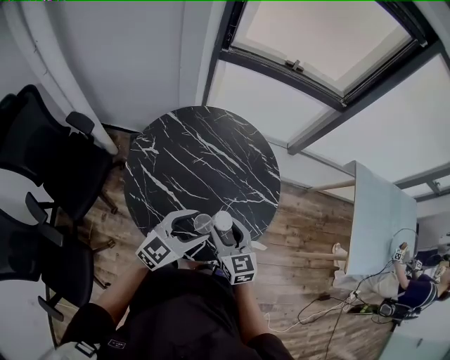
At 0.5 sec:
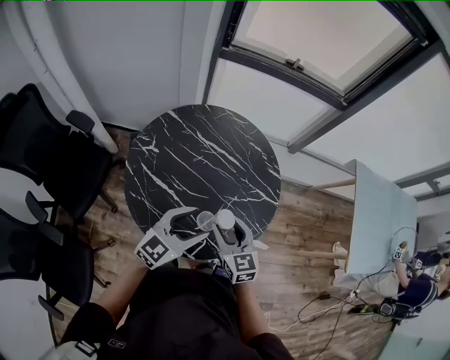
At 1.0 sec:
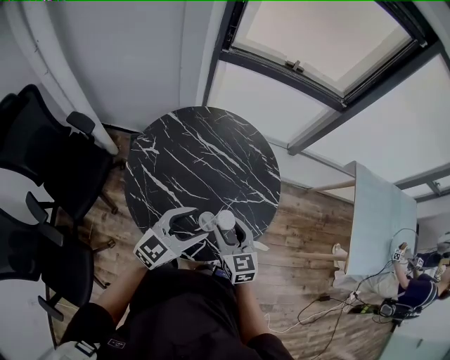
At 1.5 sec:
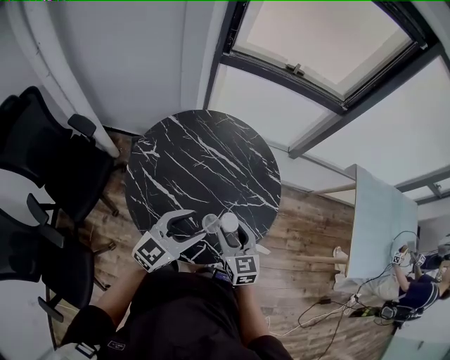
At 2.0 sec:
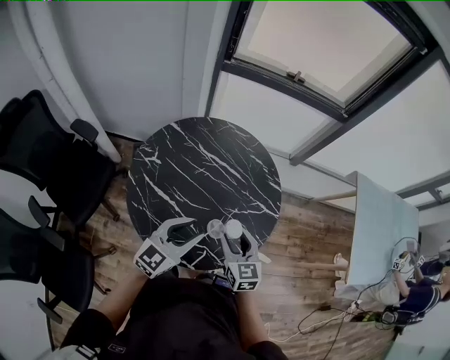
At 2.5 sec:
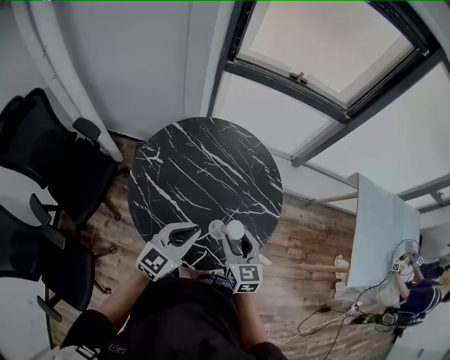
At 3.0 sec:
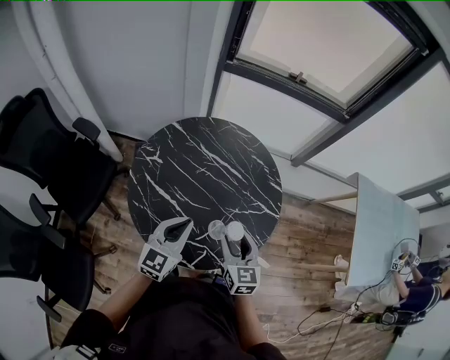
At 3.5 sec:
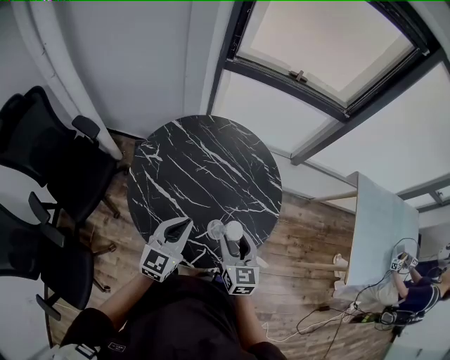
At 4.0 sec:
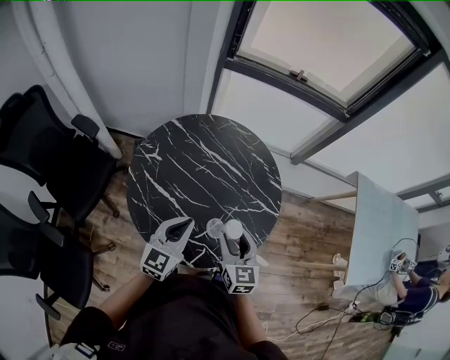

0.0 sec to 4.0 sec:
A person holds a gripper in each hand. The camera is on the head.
0.0 sec to 2.0 sec: The left gripper closes up.
2.0 sec to 4.0 sec: The left gripper closes up.

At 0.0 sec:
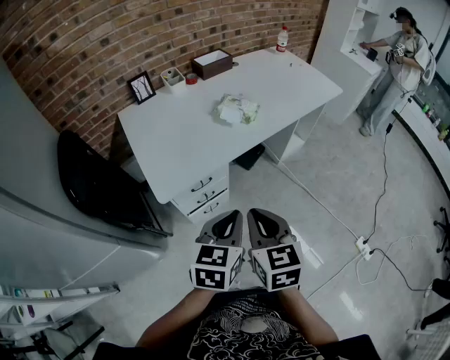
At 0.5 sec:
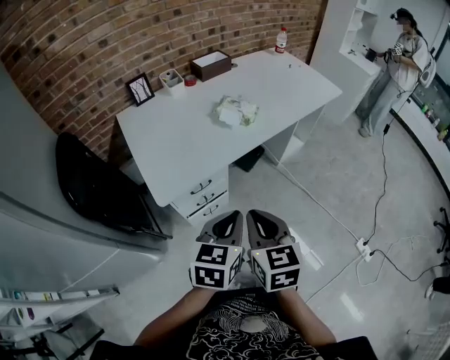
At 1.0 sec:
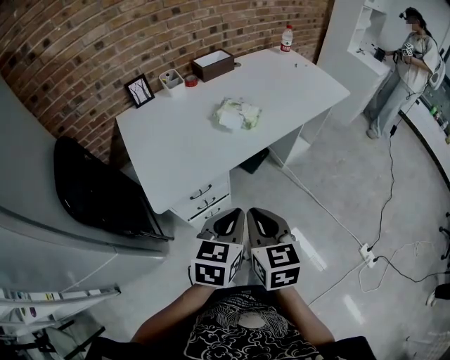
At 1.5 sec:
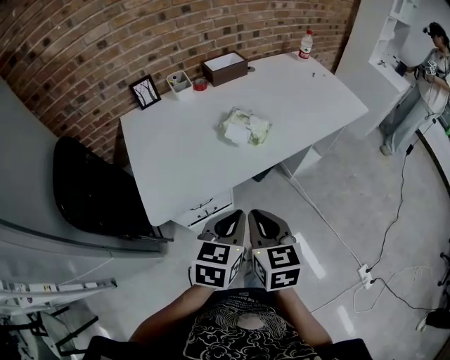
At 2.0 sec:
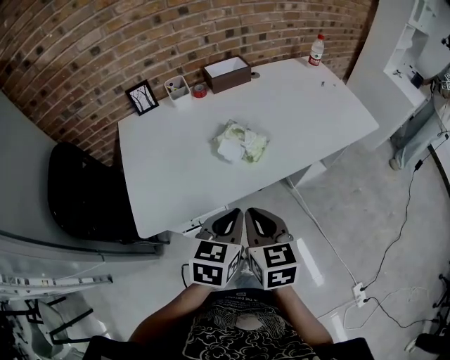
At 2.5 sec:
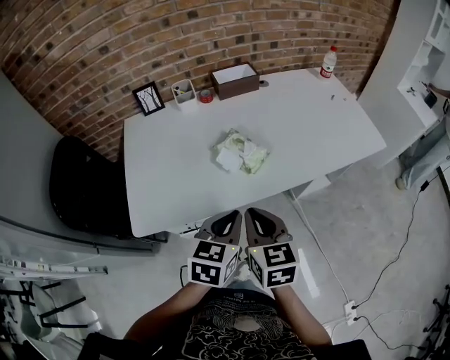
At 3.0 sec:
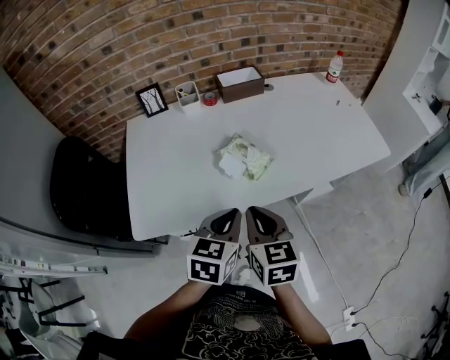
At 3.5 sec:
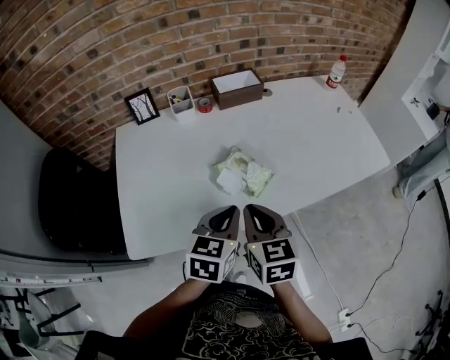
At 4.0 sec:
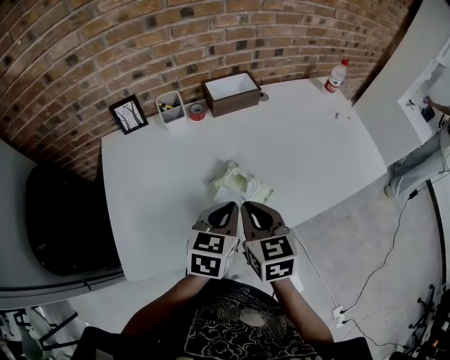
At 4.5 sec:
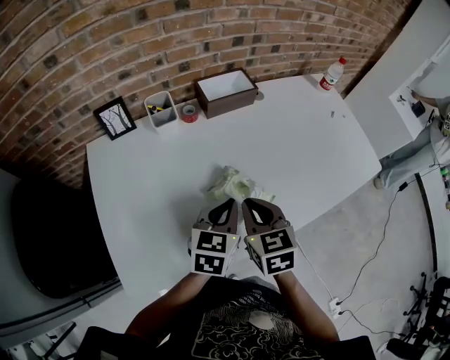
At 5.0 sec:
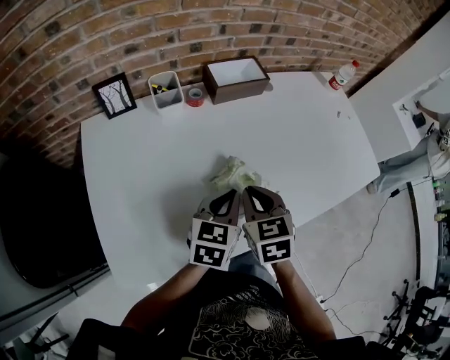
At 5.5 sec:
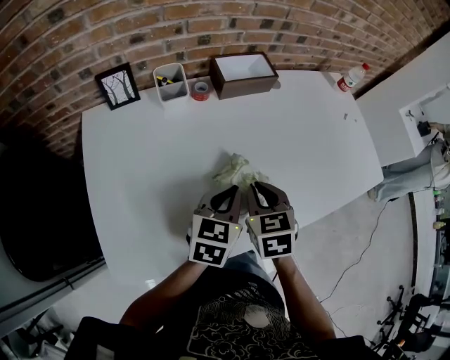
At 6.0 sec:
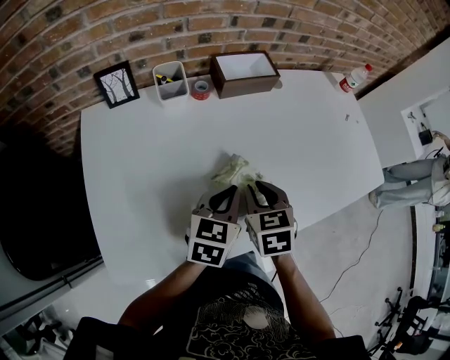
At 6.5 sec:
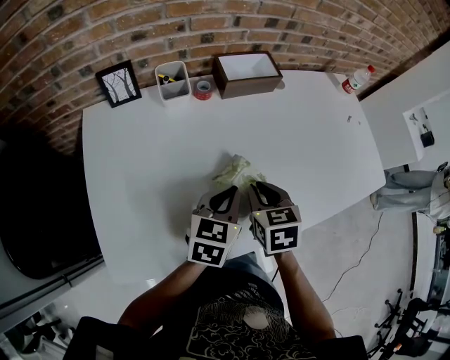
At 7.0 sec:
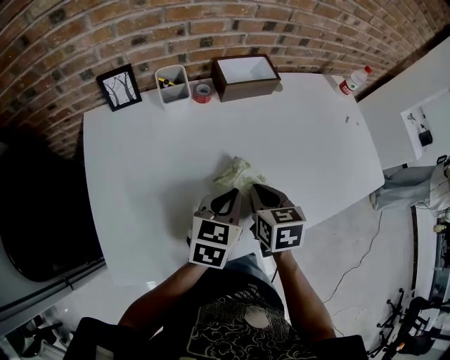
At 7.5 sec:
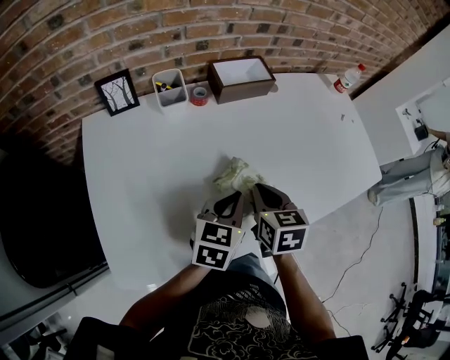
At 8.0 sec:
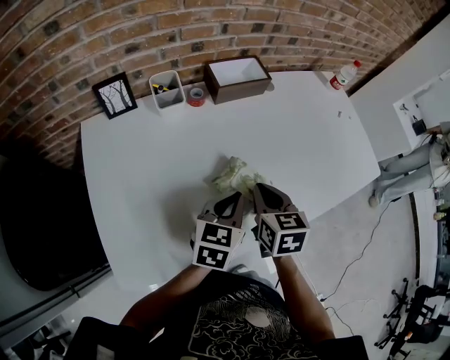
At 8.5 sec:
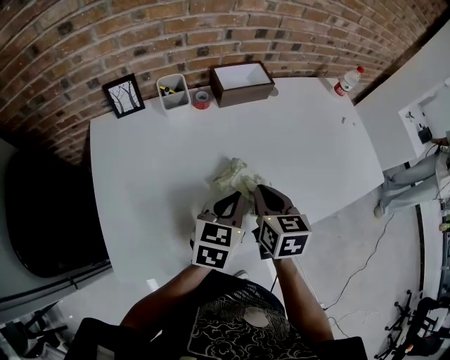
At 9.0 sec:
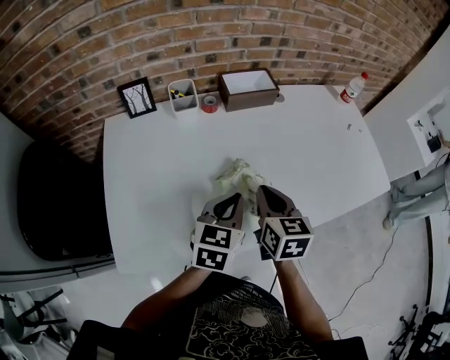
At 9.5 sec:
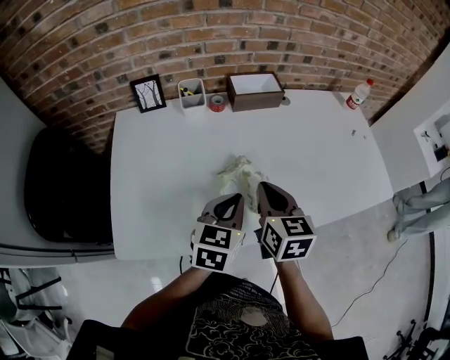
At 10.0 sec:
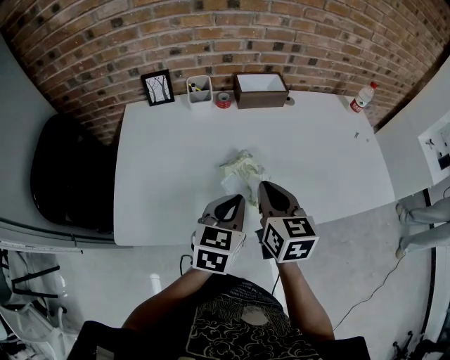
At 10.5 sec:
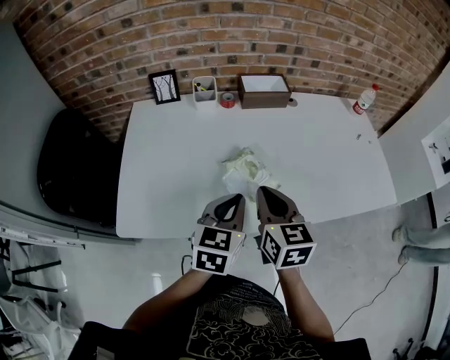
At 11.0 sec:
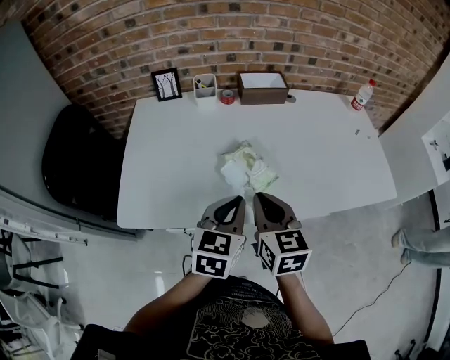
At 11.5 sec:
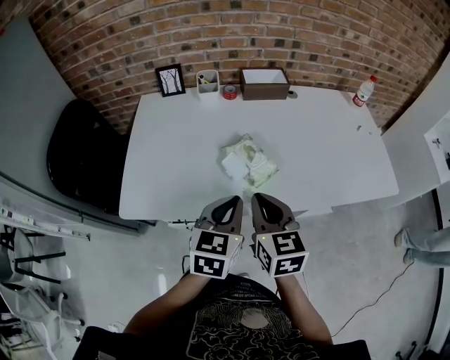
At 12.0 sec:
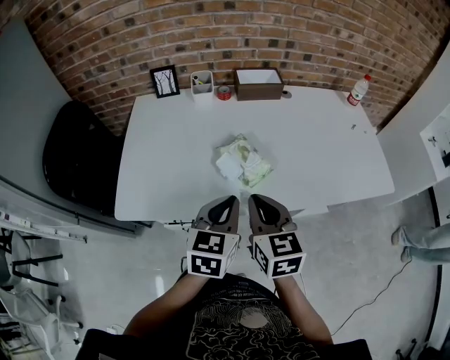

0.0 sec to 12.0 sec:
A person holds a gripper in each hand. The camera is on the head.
0.0 sec to 2.0 sec: The grippers both shift forward by about 25 cm.
2.0 sec to 4.0 sec: Both grippers move forward, roughly 20 cm.
4.0 sec to 6.0 sec: The left gripper travels forward and downward by roughly 10 cm, while the right gripper heads downward and forward, covering approximately 10 cm, and rotates roughly 20 degrees.
6.0 sec to 8.0 sec: There are only small adjustments of the grippers.
8.0 sec to 10.0 sec: The left gripper shifts some 5 cm backward. The right gripper is displaced upward and backward by about 10 cm, and turns by roughly 20 degrees.
10.0 sec to 12.0 sec: The grippers both shift backward by some 10 cm.

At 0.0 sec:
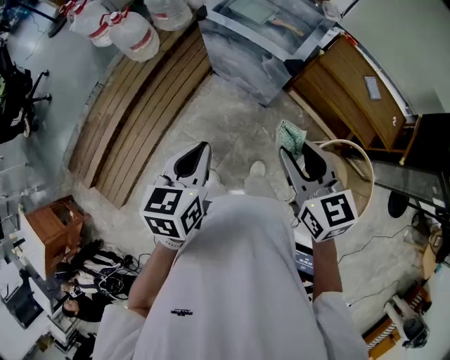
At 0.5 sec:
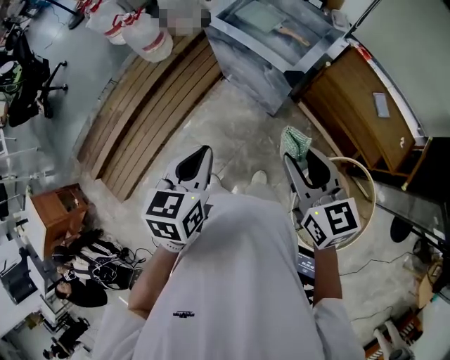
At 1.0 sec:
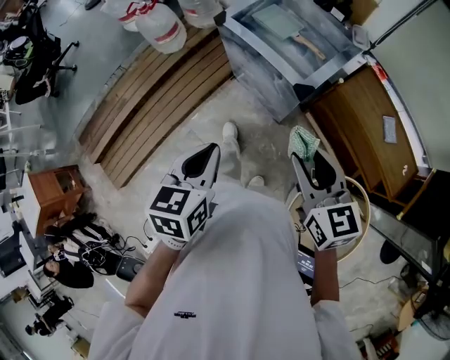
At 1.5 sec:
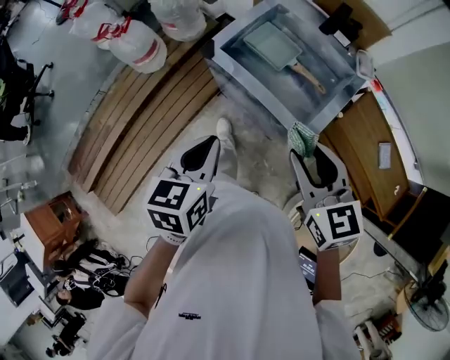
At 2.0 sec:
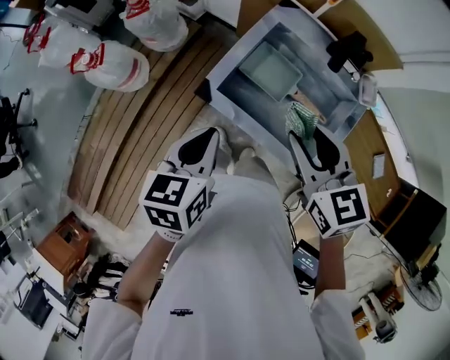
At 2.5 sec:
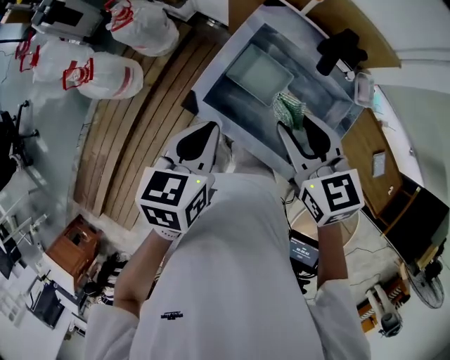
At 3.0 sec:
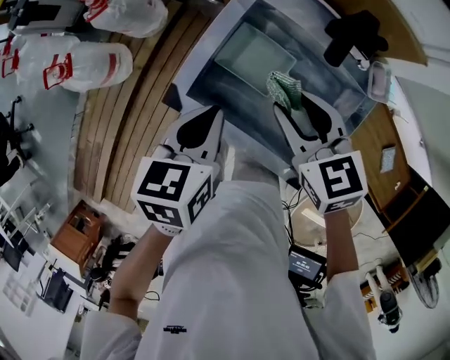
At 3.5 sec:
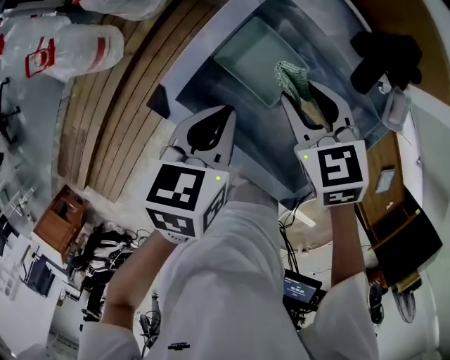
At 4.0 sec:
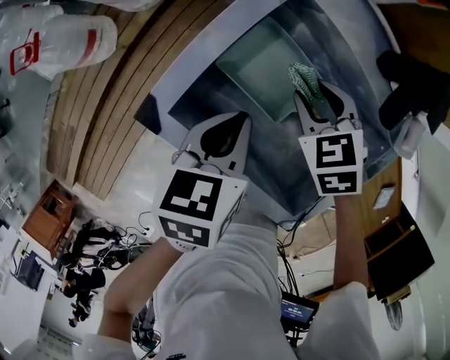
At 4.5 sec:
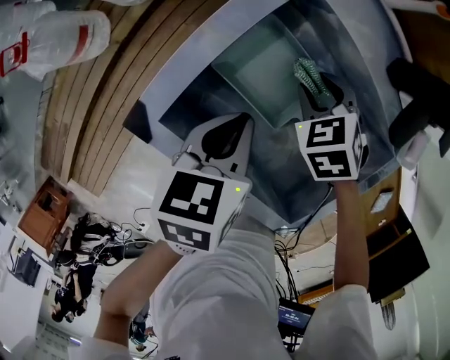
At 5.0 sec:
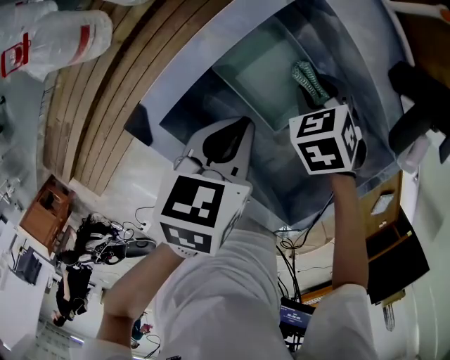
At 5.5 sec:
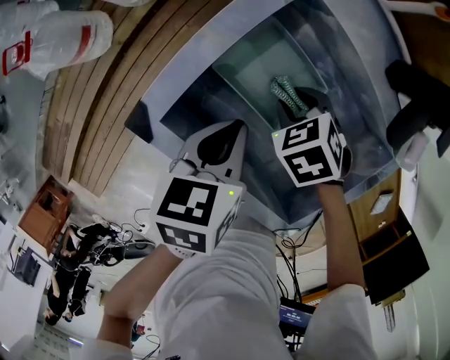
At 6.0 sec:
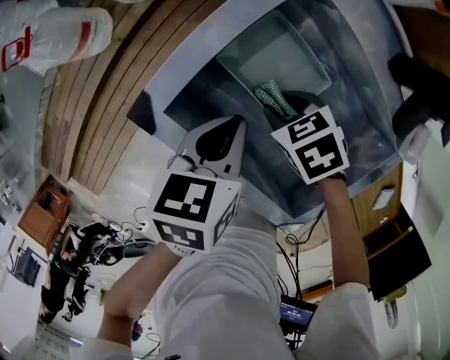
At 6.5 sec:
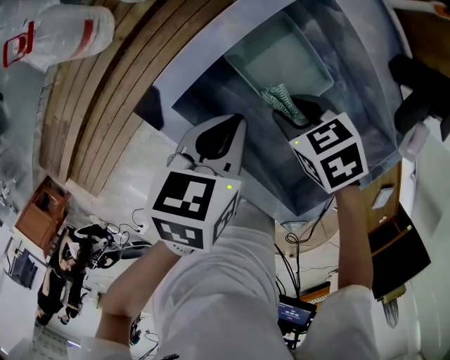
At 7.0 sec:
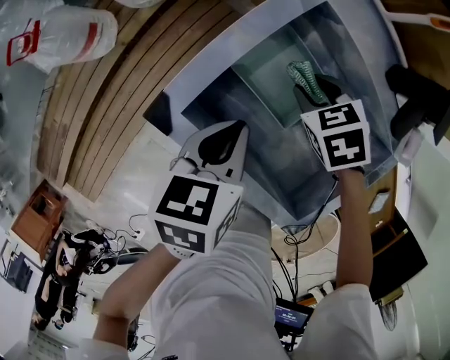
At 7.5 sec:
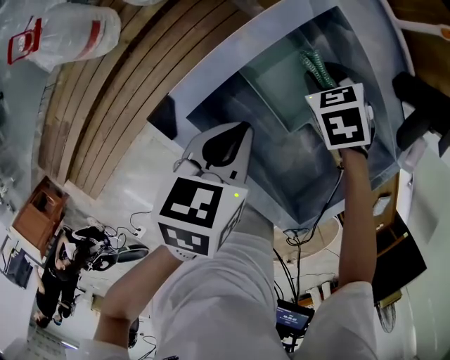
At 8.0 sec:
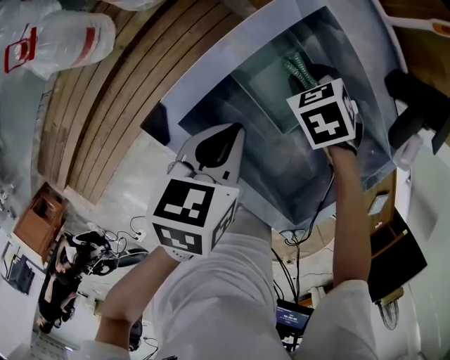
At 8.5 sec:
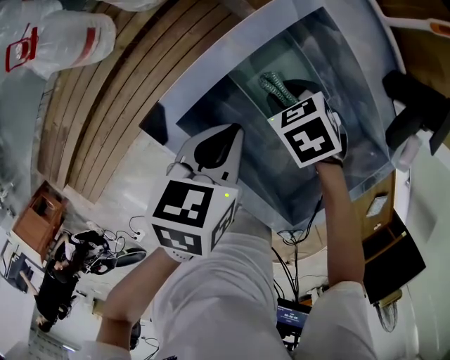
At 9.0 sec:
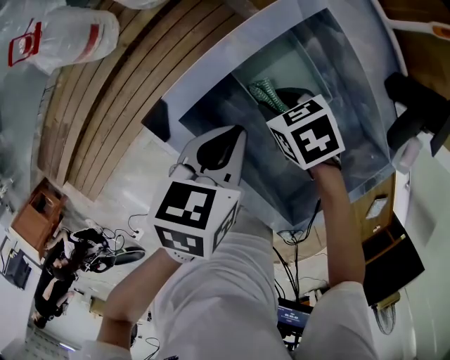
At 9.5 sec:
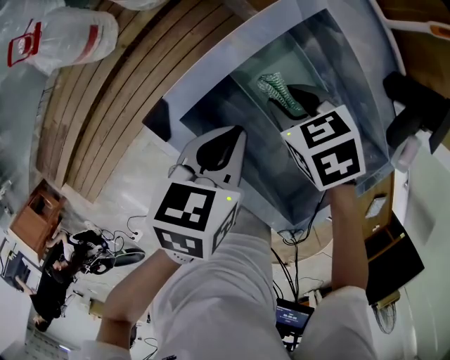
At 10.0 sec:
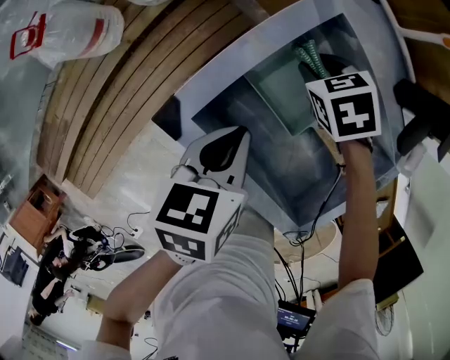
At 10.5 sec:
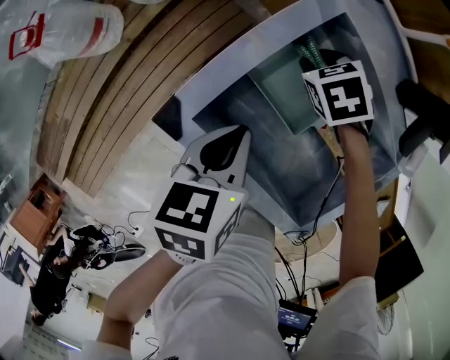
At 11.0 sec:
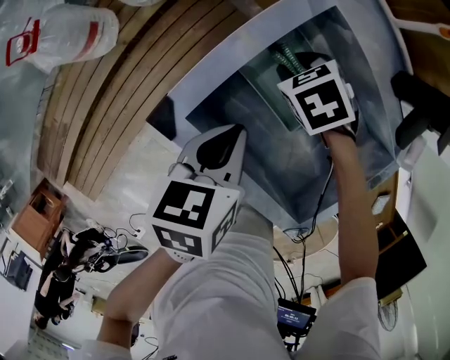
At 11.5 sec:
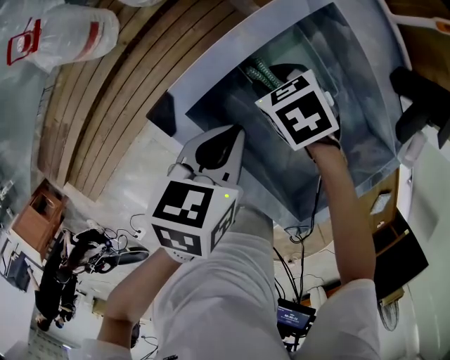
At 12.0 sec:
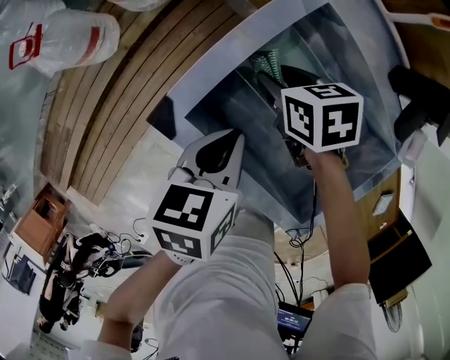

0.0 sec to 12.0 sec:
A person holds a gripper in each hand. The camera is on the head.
0.0 sec to 2.0 sec: Both grippers are carried forward, about 50 cm.
2.0 sec to 4.0 sec: The right gripper heads downward and forward, covering roughly 35 cm, and changes its angle by some 40 degrees. The left gripper travels downward, forward and to the right by approximately 30 cm.
4.0 sec to 6.0 sec: The right gripper moves roughly 10 cm, and changes its angle by about 30 degrees.
6.0 sec to 8.0 sec: The right gripper moves some 10 cm.
10.0 sec to 12.0 sec: The right gripper moves roughly 5 cm, and swivels some 30 degrees.
